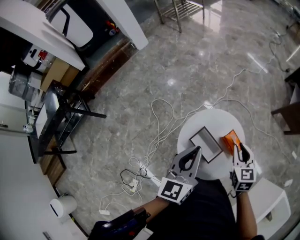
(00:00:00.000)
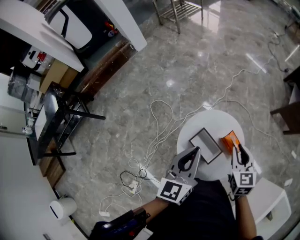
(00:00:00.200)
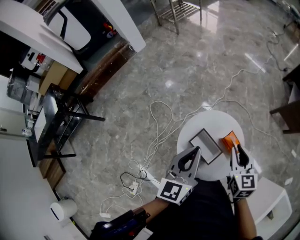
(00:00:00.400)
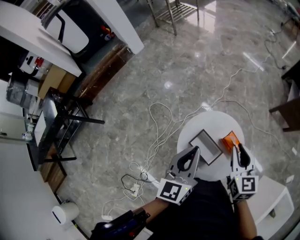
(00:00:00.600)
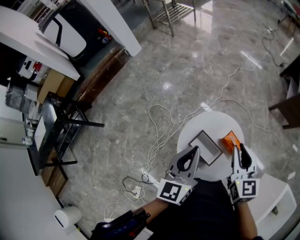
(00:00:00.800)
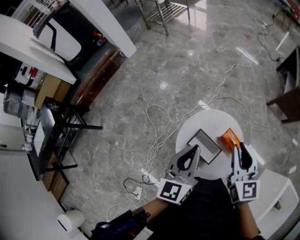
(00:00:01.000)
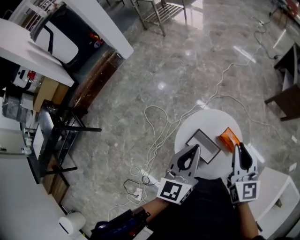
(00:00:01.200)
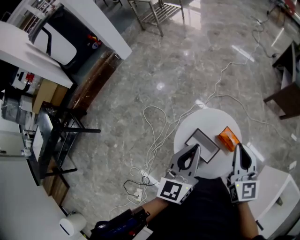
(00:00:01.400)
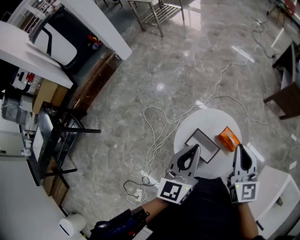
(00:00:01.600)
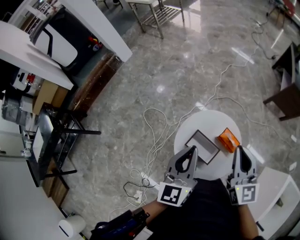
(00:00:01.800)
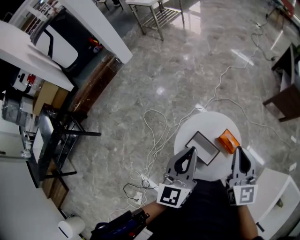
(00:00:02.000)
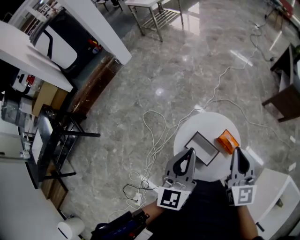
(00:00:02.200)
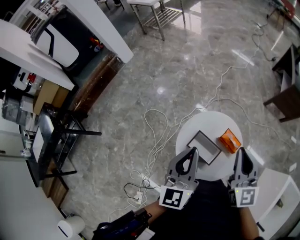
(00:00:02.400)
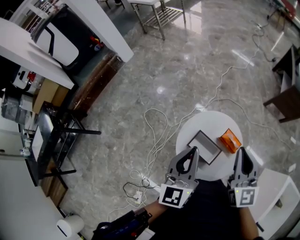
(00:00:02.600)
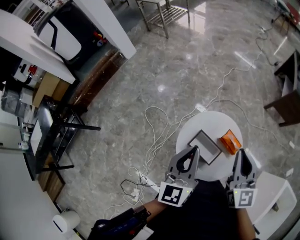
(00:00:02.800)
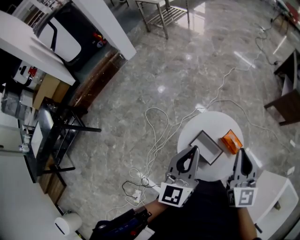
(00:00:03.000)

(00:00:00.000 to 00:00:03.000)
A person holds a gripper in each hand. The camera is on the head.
00:00:00.000 - 00:00:01.600: The right gripper shifts some 10 cm upward, and swivels some 20 degrees.
00:00:01.600 - 00:00:03.000: The grippers move only a little.

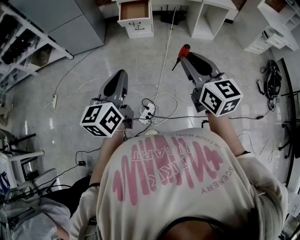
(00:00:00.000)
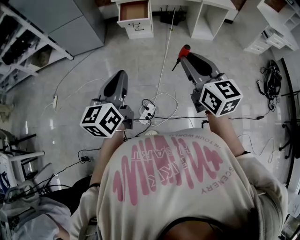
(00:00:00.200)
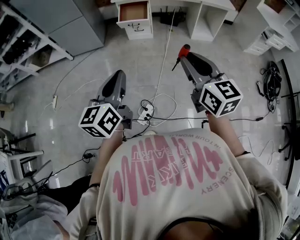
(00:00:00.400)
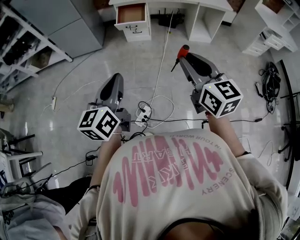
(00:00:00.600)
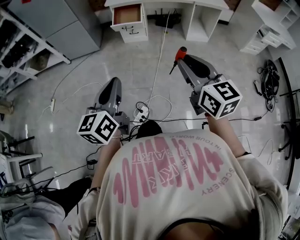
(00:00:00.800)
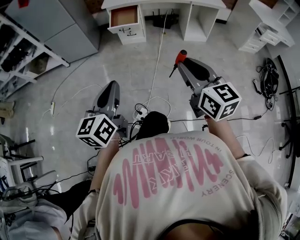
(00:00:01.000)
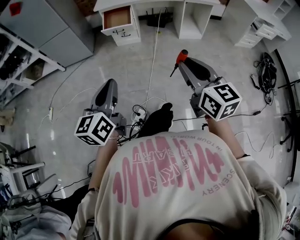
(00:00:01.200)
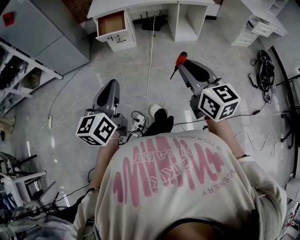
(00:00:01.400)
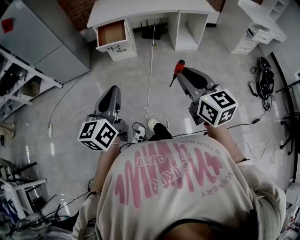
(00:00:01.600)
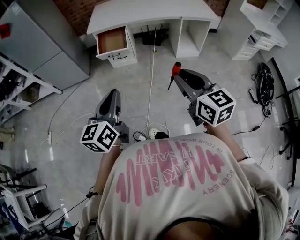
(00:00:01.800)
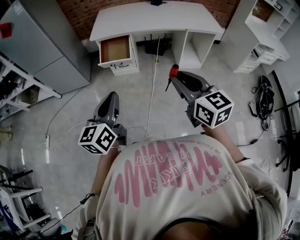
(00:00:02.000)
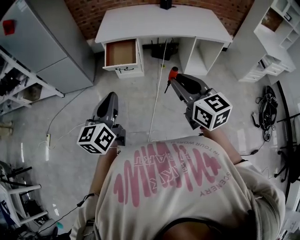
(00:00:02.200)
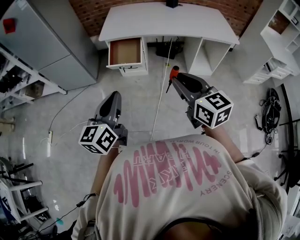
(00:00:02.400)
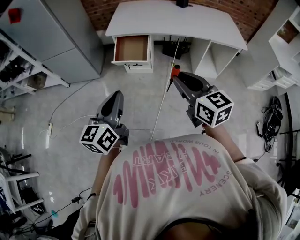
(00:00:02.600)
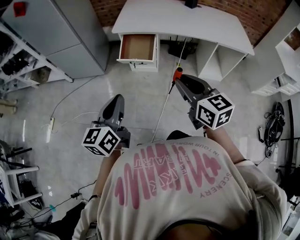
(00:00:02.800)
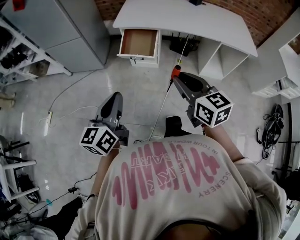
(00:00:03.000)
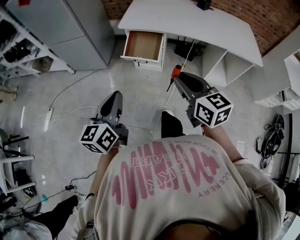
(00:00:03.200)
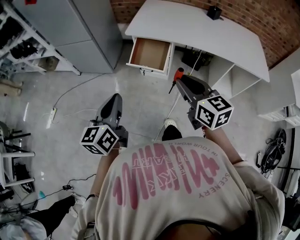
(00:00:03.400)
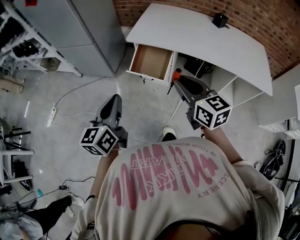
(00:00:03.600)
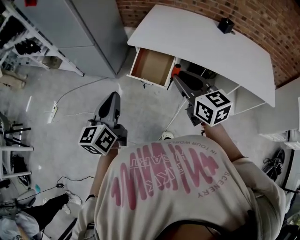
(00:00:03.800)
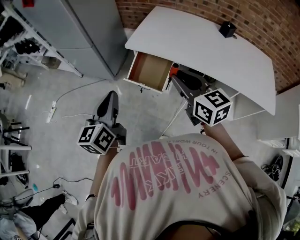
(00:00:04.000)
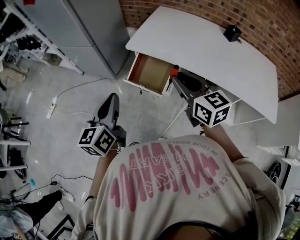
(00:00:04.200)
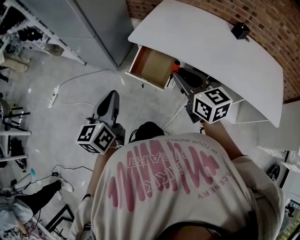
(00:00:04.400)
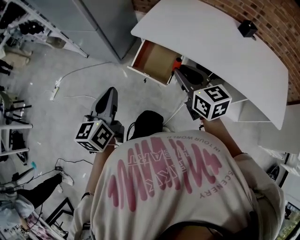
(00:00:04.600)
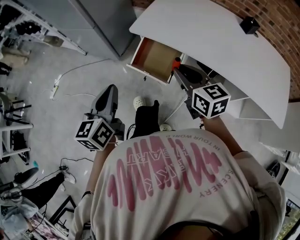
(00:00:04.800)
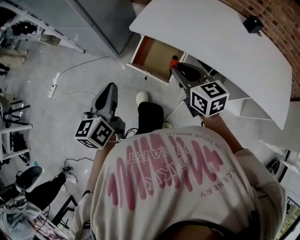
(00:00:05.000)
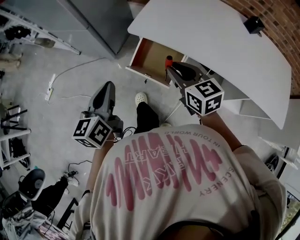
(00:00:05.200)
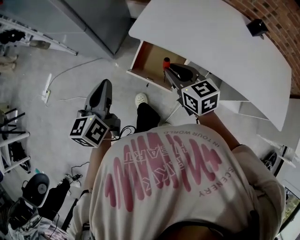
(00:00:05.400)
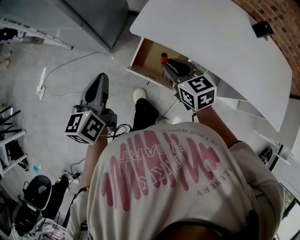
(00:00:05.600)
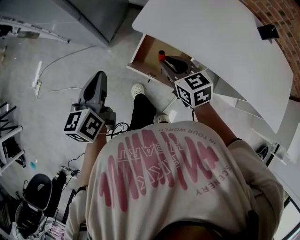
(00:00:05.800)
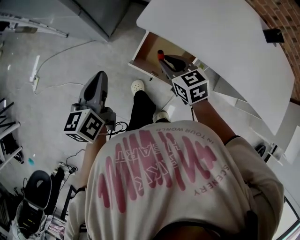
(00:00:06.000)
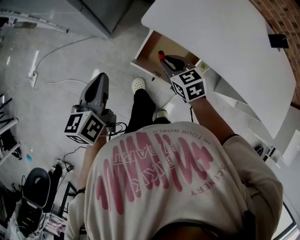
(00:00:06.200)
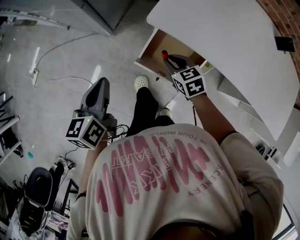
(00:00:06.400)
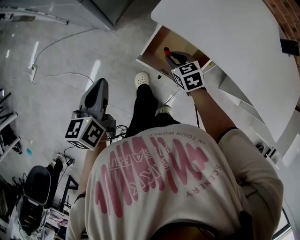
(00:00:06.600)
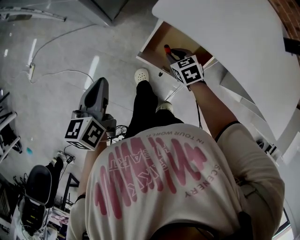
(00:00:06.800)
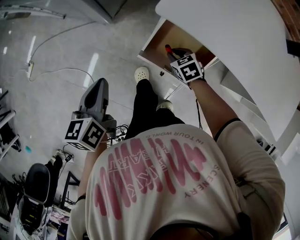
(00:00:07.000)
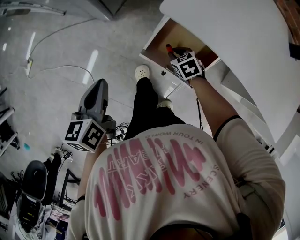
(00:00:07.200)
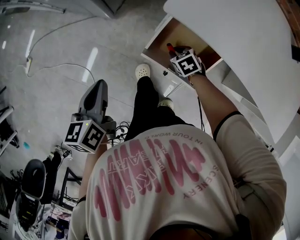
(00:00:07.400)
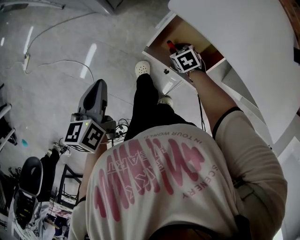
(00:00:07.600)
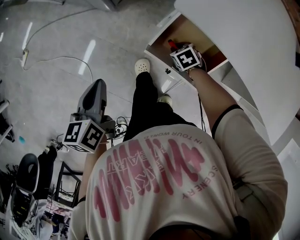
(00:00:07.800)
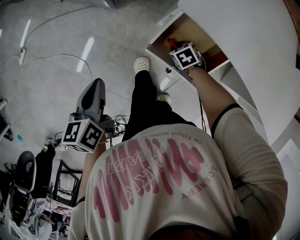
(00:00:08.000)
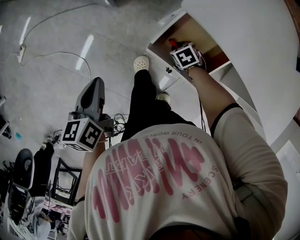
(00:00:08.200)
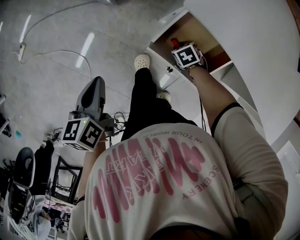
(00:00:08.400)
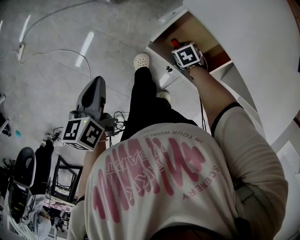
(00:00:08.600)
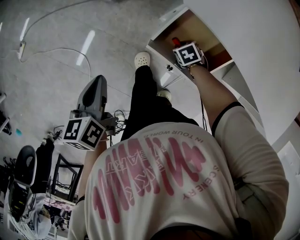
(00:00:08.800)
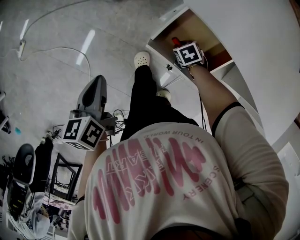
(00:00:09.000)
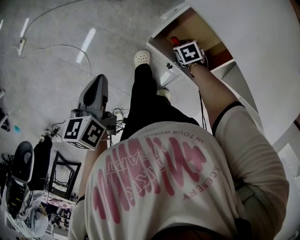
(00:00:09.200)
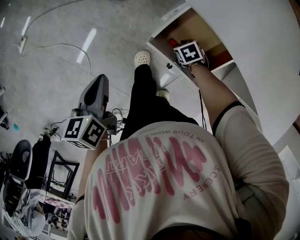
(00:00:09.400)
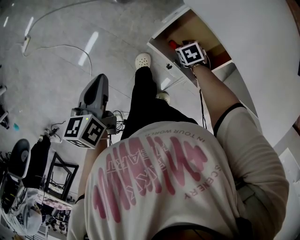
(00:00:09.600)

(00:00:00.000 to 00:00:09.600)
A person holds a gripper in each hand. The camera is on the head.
00:00:00.000 - 00:00:01.600: Both grippers move to the right and forward, approximately 15 cm.
00:00:01.600 - 00:00:03.200: Both grippers travel together forward, roughly 35 cm. The right gripper changes its angle by roughly 20 degrees.
00:00:03.200 - 00:00:04.800: The two grippers go roughly 30 cm forward. The left gripper rotates about 20 degrees.
00:00:04.800 - 00:00:06.400: The left gripper goes approximately 30 cm forward, downward and to the left; the right gripper travels downward, forward and to the left by roughly 35 cm, and rotates roughly 30 degrees.
00:00:06.400 - 00:00:08.000: The right gripper moves downward, roughly 20 cm, and changes its angle by about 30 degrees. Meanwhile the left gripper travels downward by about 10 cm.
00:00:08.000 - 00:00:09.600: The grippers move only a little.

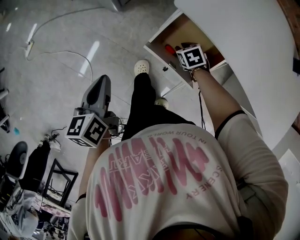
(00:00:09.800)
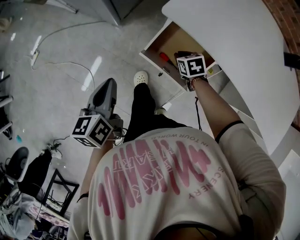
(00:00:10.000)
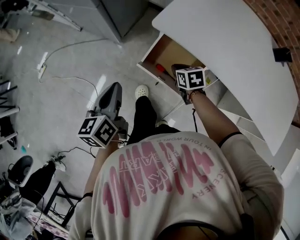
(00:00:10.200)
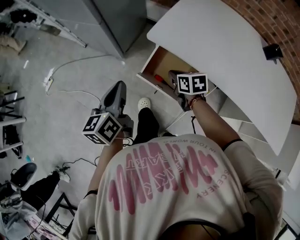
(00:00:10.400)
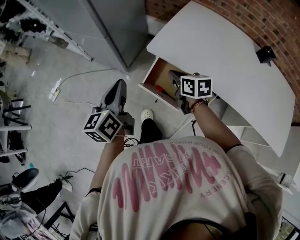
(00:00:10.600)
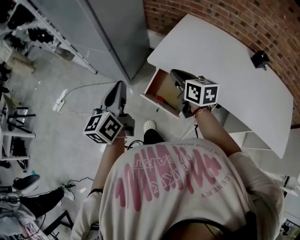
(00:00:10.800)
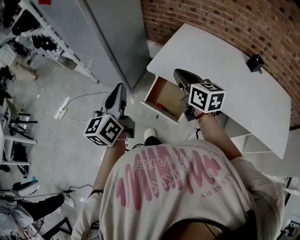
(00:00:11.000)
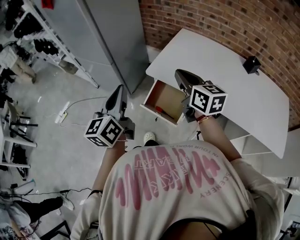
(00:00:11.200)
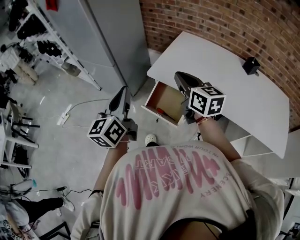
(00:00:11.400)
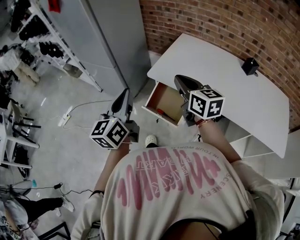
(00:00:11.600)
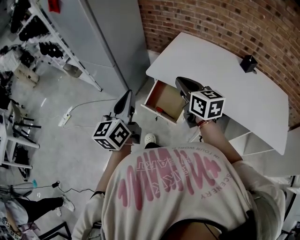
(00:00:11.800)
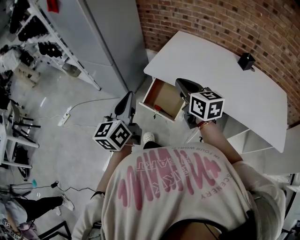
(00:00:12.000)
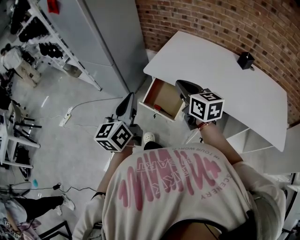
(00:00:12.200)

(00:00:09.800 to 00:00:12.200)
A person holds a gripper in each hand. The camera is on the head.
00:00:09.800 - 00:00:11.000: The left gripper travels upward by roughly 30 cm, and angles its fingers upward, by roughly 30 degrees. The right gripper goes approximately 50 cm upward, angles its fingers upward, by about 60 degrees, and closes up.
00:00:11.000 - 00:00:12.200: The right gripper heads backward, covering roughly 10 cm, while the left gripper heads backward and to the right, covering some 10 cm.

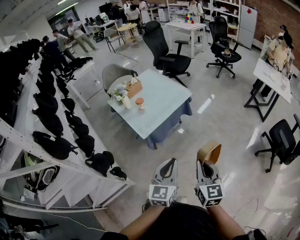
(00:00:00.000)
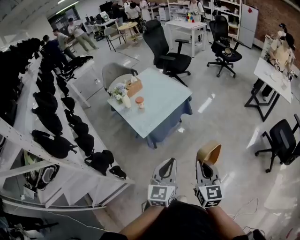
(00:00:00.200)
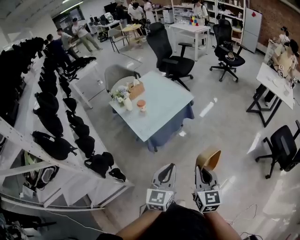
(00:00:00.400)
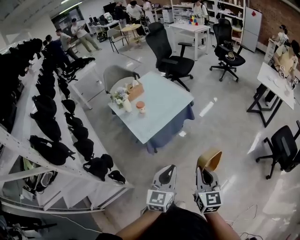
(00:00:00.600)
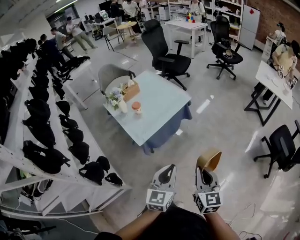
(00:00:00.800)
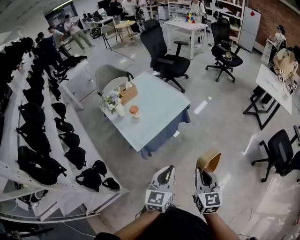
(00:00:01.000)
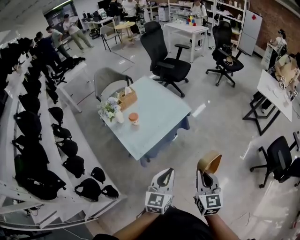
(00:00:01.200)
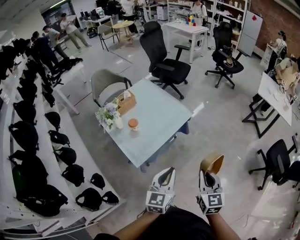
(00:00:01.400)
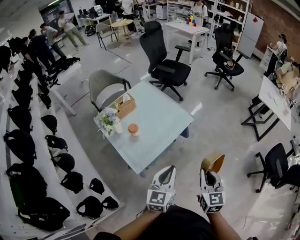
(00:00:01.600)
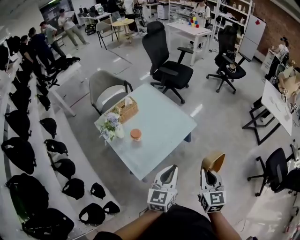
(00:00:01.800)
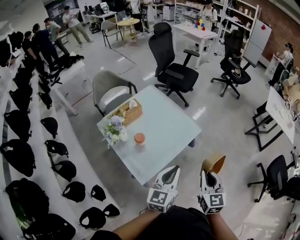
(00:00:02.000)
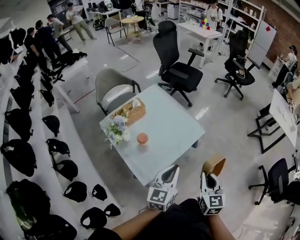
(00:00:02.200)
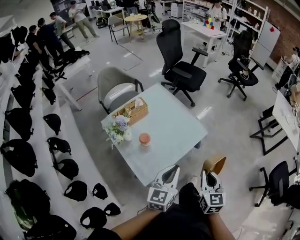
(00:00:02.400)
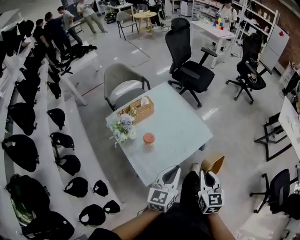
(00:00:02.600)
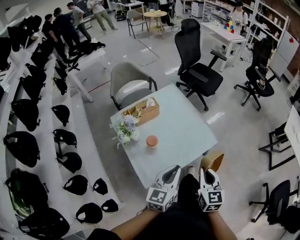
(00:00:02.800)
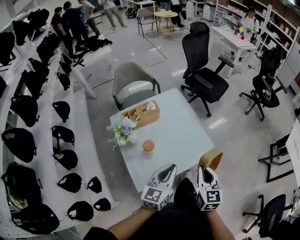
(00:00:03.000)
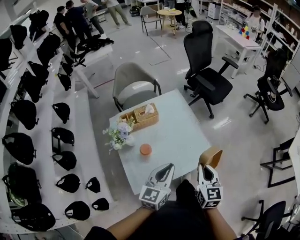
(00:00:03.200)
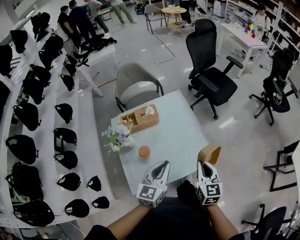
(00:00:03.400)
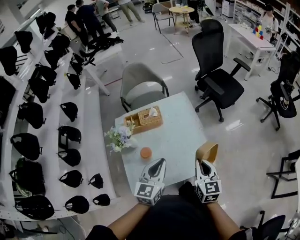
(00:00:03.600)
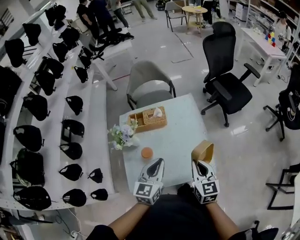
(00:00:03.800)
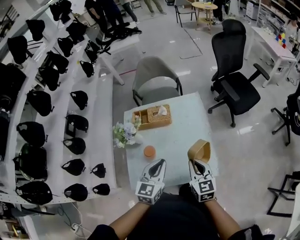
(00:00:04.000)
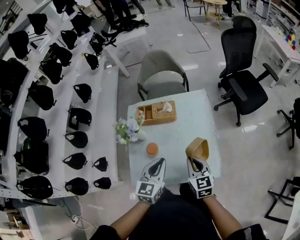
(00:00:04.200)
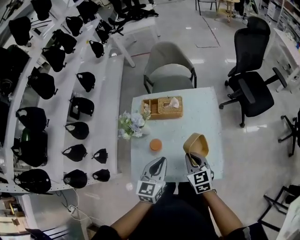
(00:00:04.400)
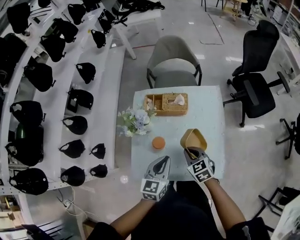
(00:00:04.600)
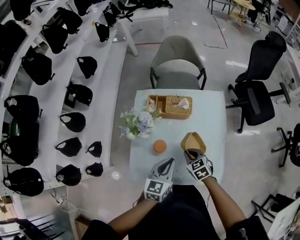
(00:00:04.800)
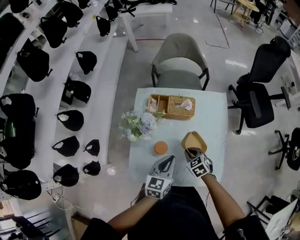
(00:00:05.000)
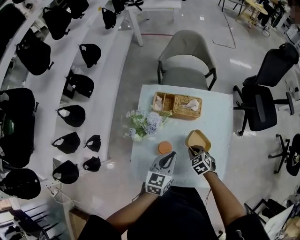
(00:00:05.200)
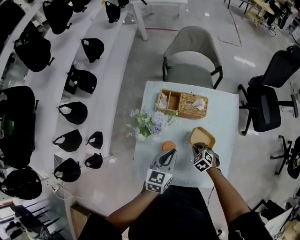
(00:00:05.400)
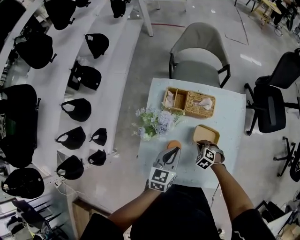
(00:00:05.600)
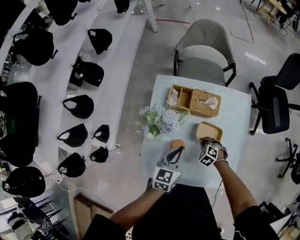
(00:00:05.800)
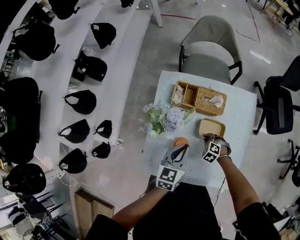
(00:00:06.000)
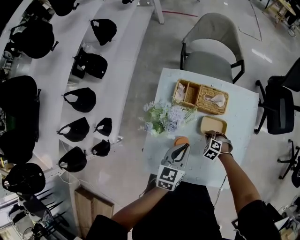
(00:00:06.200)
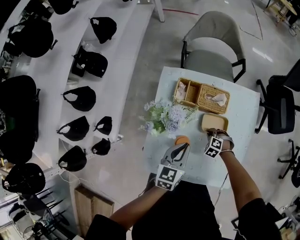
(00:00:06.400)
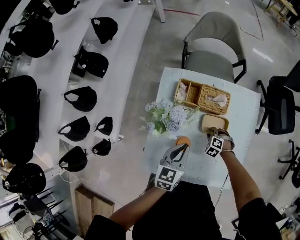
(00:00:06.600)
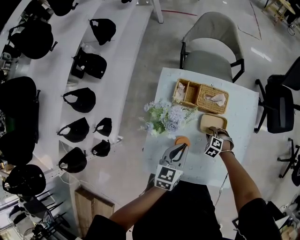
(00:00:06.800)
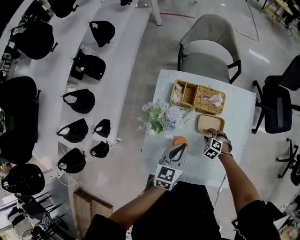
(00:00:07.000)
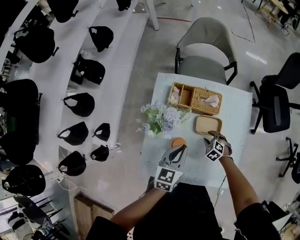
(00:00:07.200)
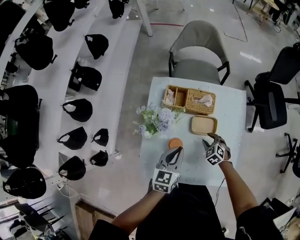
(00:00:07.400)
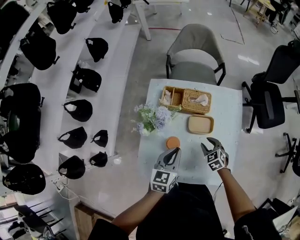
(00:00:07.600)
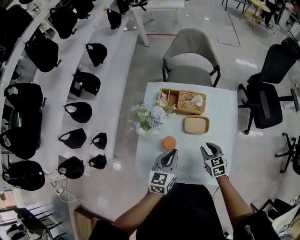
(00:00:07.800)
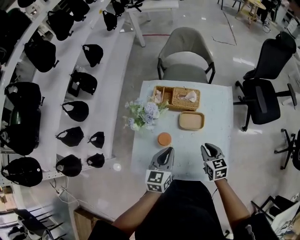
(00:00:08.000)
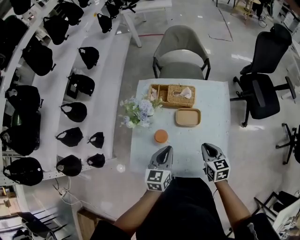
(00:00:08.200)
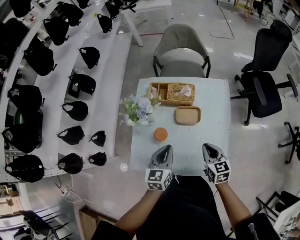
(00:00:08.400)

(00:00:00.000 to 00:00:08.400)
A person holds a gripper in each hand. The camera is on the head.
00:00:00.000 - 00:00:01.400: The two grippers go approximately 25 cm forward.
00:00:01.400 - 00:00:02.800: The grippers both shift forward and to the left by roughly 30 cm.
00:00:02.800 - 00:00:04.200: The right gripper shifts by approximately 30 cm, and rotates approximately 40 degrees. Meanwhile the left gripper shifts by roughly 20 cm, and rotates approximately 40 degrees.
00:00:04.200 - 00:00:05.600: The left gripper moves forward, downward and to the left, some 25 cm, while the right gripper moves downward and forward, approximately 30 cm, and tips its fingers downward by approximately 40 degrees.
00:00:05.600 - 00:00:07.000: The right gripper ends up roughly 5 cm from where it was, and opens.
00:00:07.000 - 00:00:08.400: The left gripper changes place by approximately 15 cm. The right gripper moves upward, approximately 25 cm, rolls clockwise, seen from behind, by some 60 degrees, and closes its fingers.
